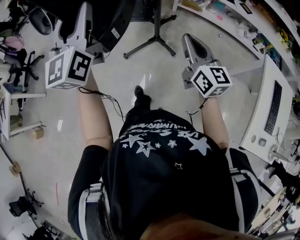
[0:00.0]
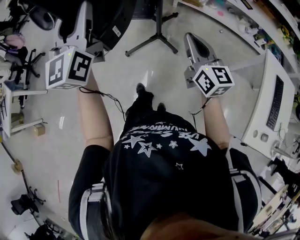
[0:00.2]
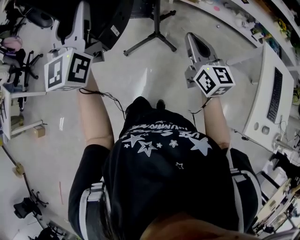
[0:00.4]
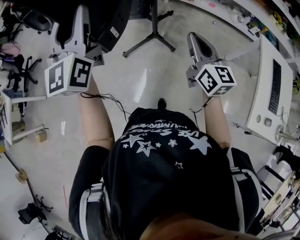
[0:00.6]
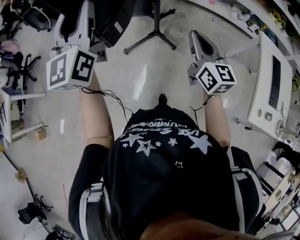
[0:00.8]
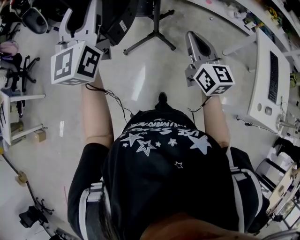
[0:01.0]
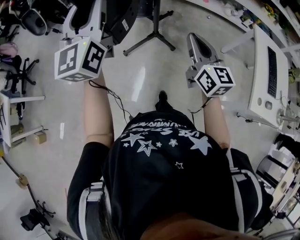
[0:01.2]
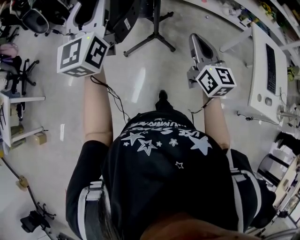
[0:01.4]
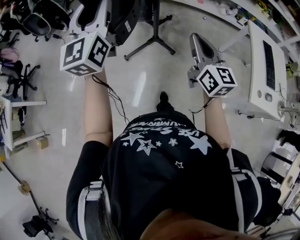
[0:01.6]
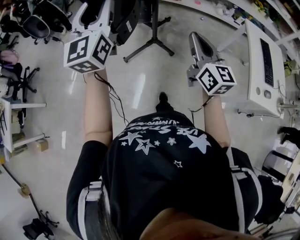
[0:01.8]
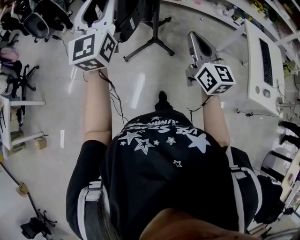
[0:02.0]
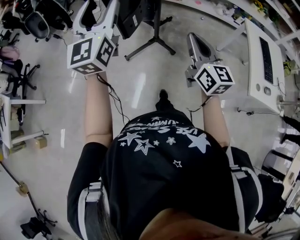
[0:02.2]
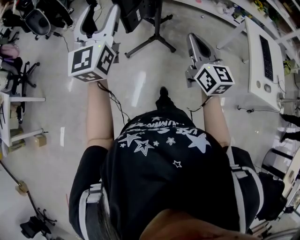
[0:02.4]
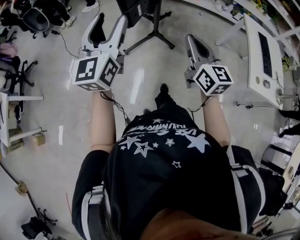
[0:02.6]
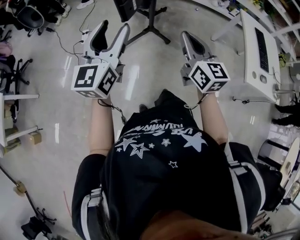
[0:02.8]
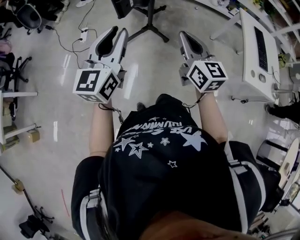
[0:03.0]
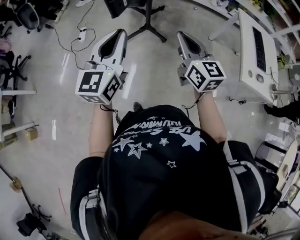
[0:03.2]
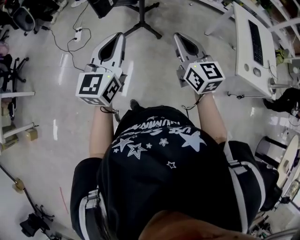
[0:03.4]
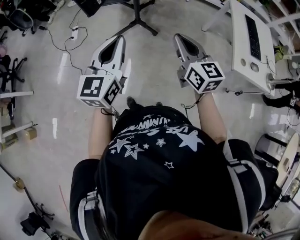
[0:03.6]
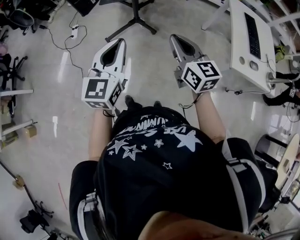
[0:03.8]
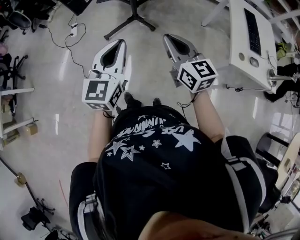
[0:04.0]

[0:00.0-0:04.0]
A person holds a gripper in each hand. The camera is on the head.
0:00.0 to 0:01.4: The grippers both shift backward by approximately 15 cm.
0:01.4 to 0:02.6: The left gripper goes roughly 15 cm backward and downward. The right gripper travels backward by roughly 10 cm.
0:02.6 to 0:04.0: The right gripper travels to the right, backward and downward by roughly 15 cm; the left gripper is displaced to the right, backward and downward by roughly 30 cm, and closes.

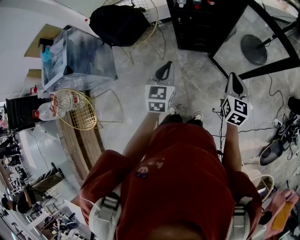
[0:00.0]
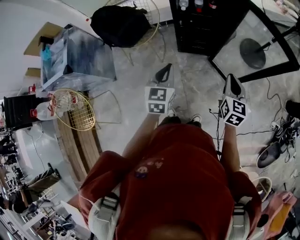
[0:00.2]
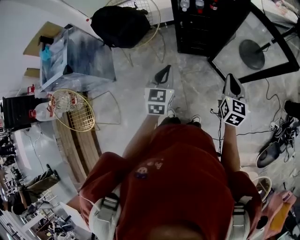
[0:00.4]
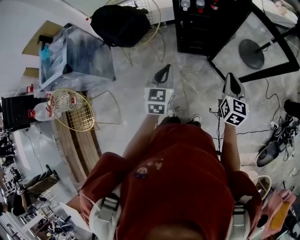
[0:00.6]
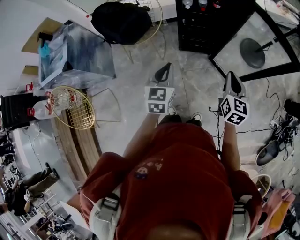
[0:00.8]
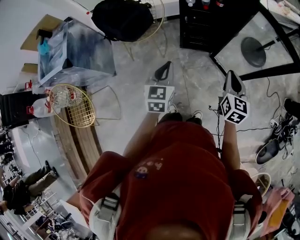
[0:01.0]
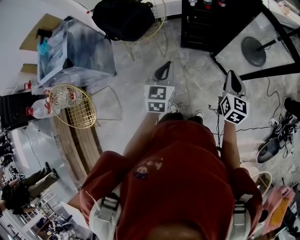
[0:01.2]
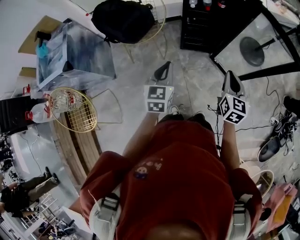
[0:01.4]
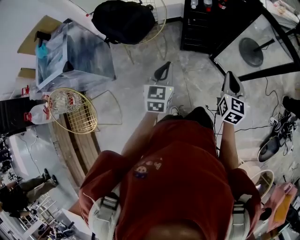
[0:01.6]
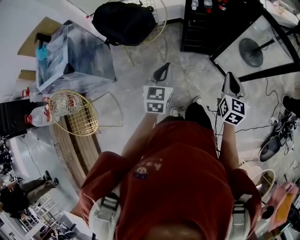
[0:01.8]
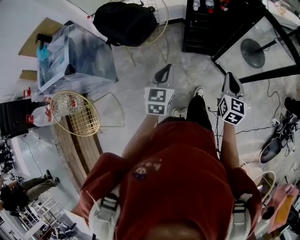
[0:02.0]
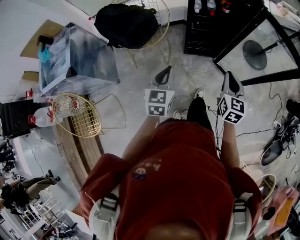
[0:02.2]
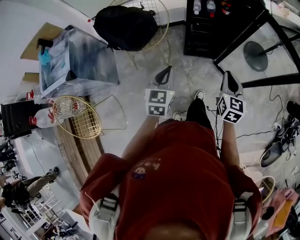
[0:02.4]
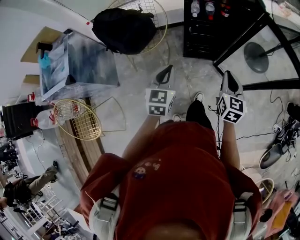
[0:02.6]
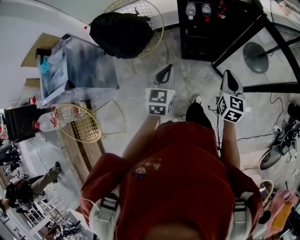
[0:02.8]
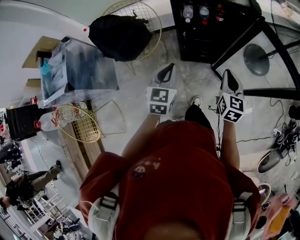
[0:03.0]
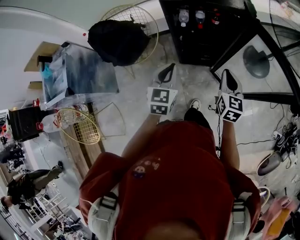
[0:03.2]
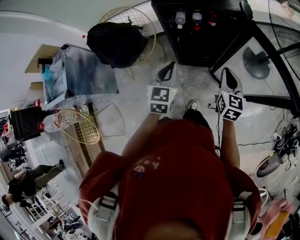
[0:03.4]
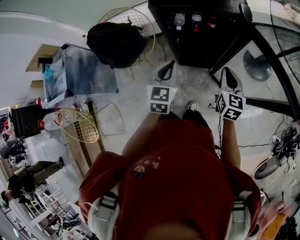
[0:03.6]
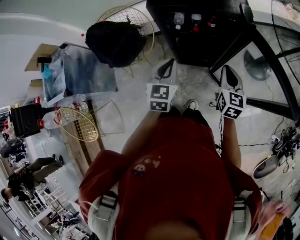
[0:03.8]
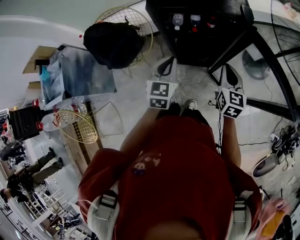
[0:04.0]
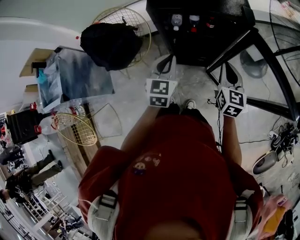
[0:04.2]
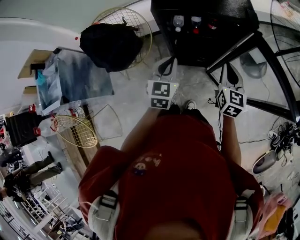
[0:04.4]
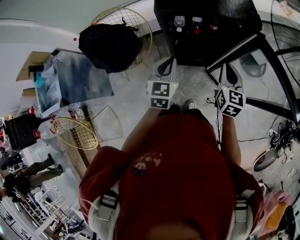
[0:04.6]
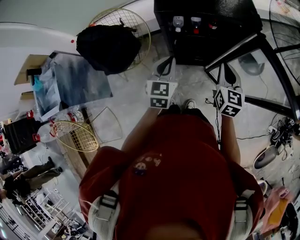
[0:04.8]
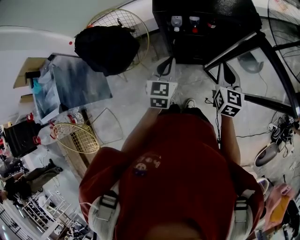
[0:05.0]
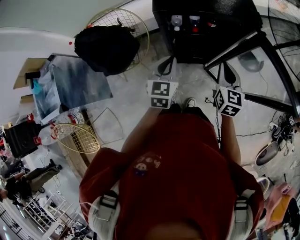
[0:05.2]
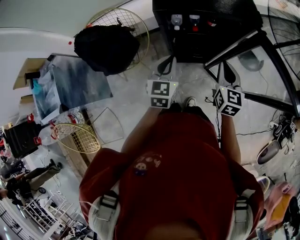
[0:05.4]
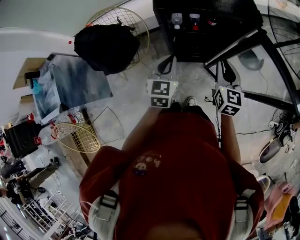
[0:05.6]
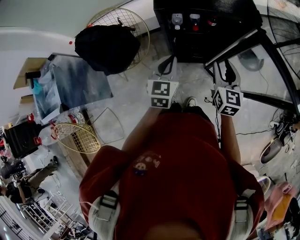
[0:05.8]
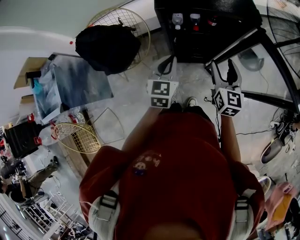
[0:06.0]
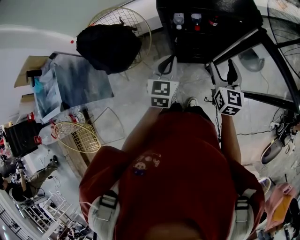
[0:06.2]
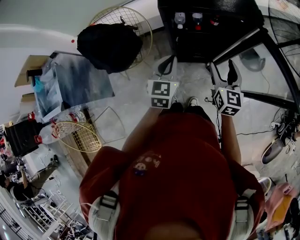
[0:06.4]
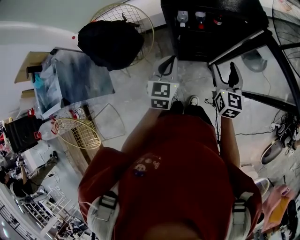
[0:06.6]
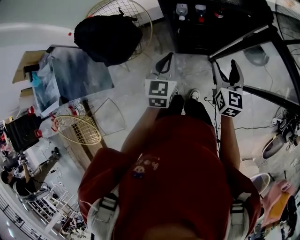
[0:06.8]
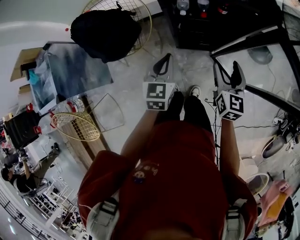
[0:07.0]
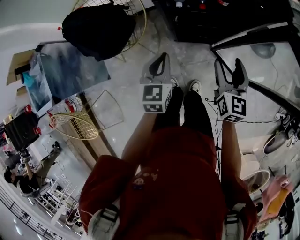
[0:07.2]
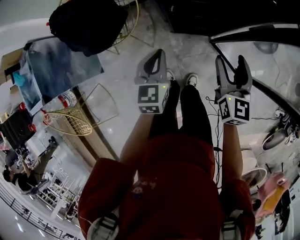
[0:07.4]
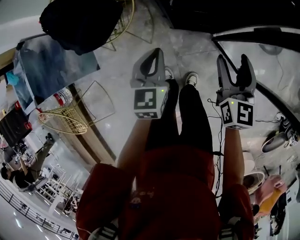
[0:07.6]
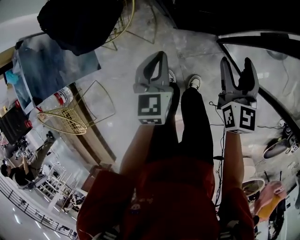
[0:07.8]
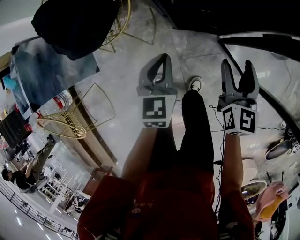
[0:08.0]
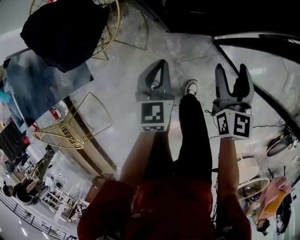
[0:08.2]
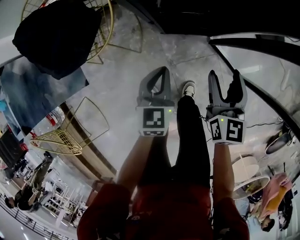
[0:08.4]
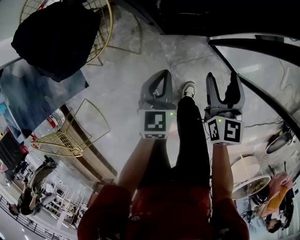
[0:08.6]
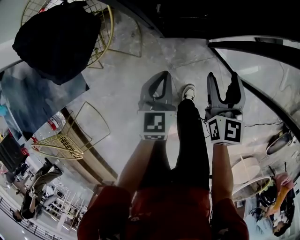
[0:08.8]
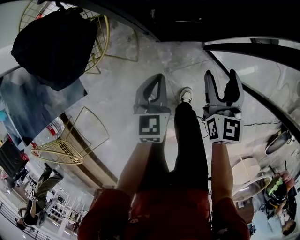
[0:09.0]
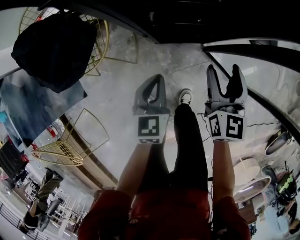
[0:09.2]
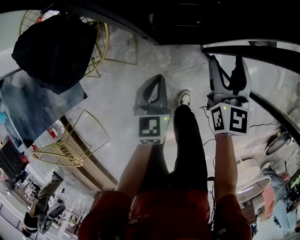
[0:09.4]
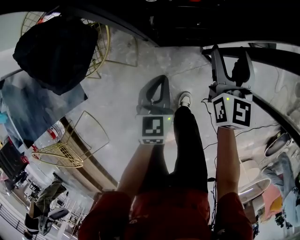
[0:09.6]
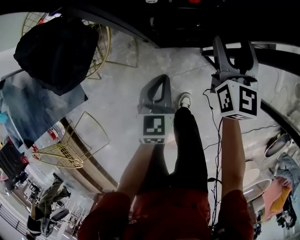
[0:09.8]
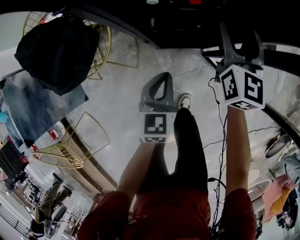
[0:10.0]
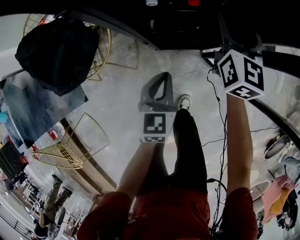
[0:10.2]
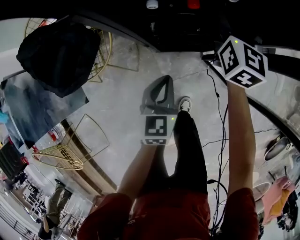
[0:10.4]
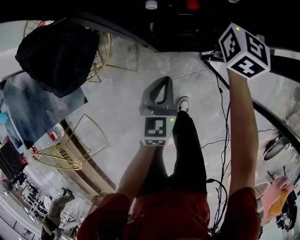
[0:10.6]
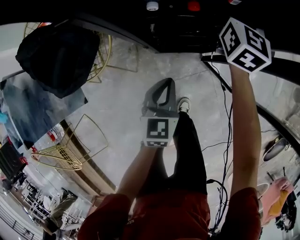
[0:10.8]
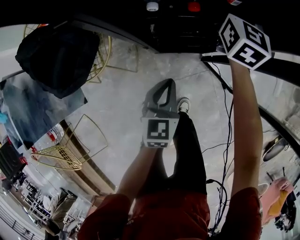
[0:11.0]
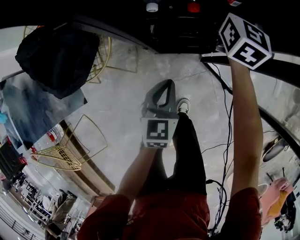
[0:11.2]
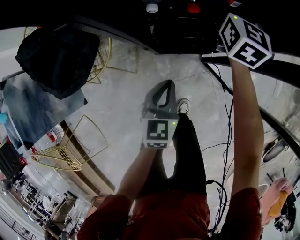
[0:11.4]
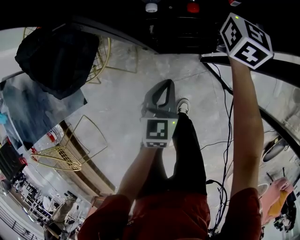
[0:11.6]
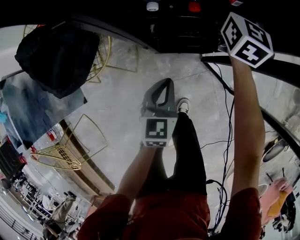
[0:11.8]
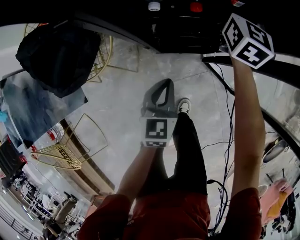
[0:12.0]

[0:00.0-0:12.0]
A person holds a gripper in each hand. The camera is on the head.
0:00.0 to 0:01.6: The grippers both shift to the left by approximately 15 cm.
0:01.6 to 0:03.0: The left gripper shifts some 20 cm forward and to the right; the right gripper goes approximately 20 cm forward.
0:03.0 to 0:04.4: The left gripper heads forward and to the right, covering roughly 15 cm. The right gripper heads forward, covering approximately 15 cm.
0:04.4 to 0:06.0: The right gripper shifts by approximately 5 cm, and opens up.
0:06.0 to 0:07.6: Both grippers travel together downward, approximately 20 cm.
0:07.6 to 0:09.0: The two grippers go about 15 cm downward.
0:09.0 to 0:10.4: The right gripper heads forward and upward, covering about 25 cm. Meanwhile the left gripper changes place by about 5 cm.
0:10.4 to 0:12.0: The right gripper travels forward by approximately 5 cm.

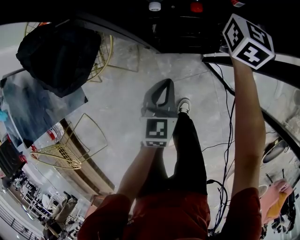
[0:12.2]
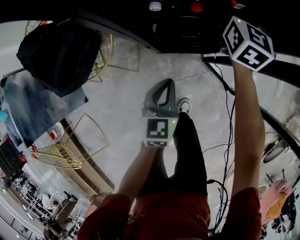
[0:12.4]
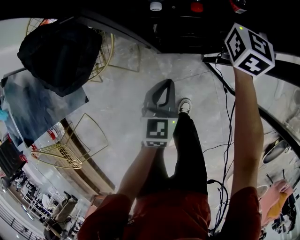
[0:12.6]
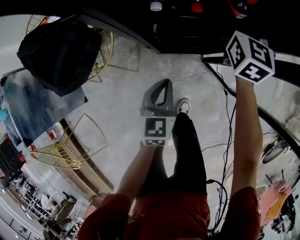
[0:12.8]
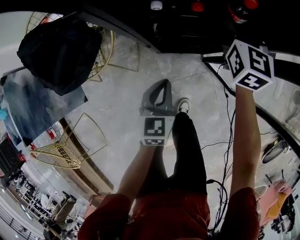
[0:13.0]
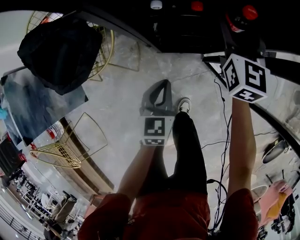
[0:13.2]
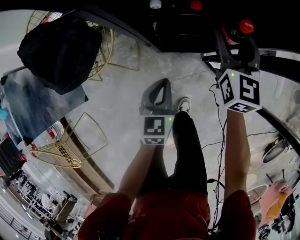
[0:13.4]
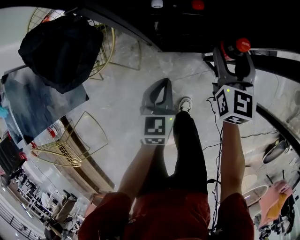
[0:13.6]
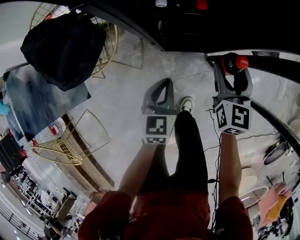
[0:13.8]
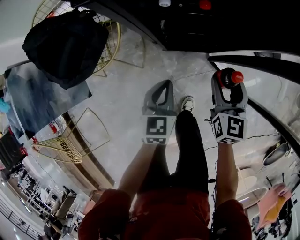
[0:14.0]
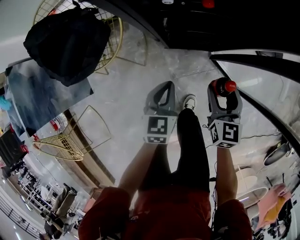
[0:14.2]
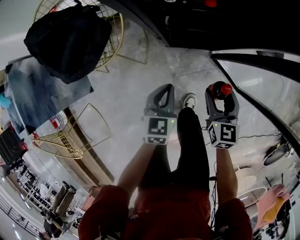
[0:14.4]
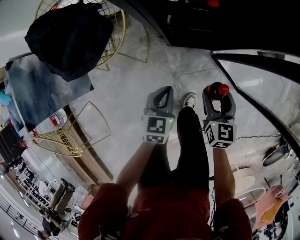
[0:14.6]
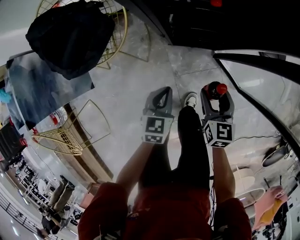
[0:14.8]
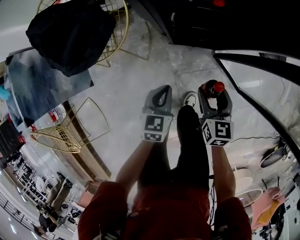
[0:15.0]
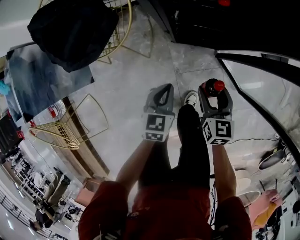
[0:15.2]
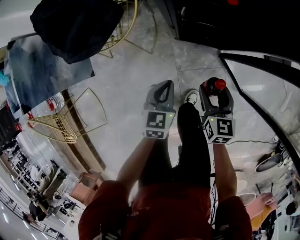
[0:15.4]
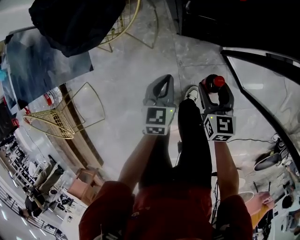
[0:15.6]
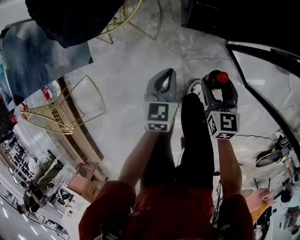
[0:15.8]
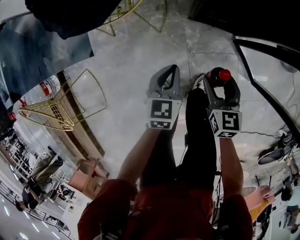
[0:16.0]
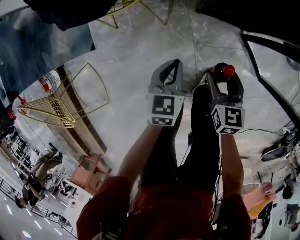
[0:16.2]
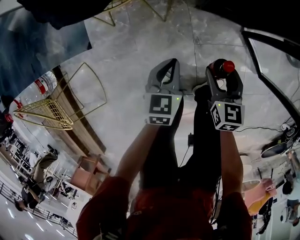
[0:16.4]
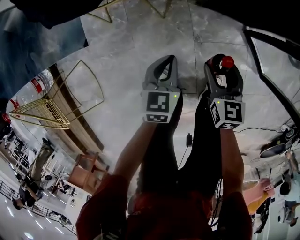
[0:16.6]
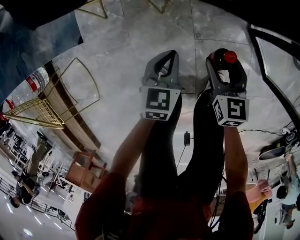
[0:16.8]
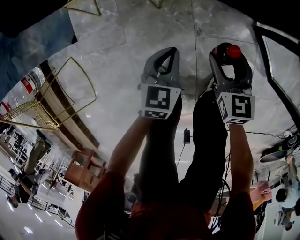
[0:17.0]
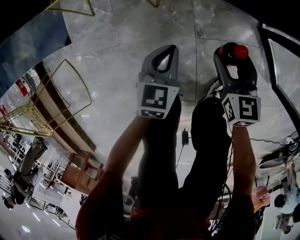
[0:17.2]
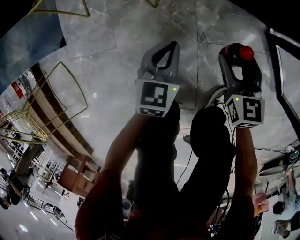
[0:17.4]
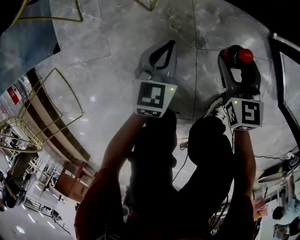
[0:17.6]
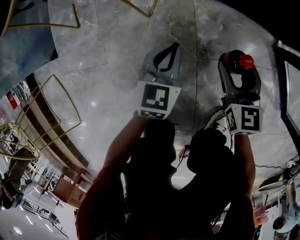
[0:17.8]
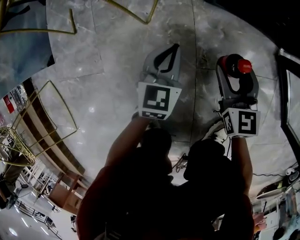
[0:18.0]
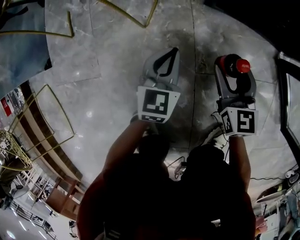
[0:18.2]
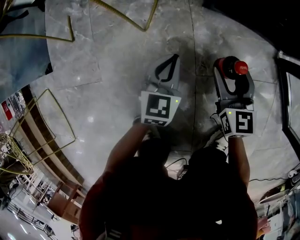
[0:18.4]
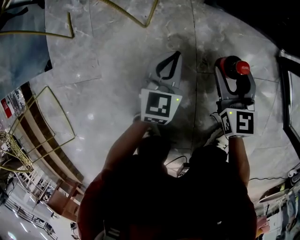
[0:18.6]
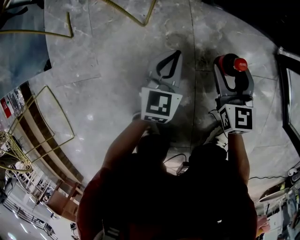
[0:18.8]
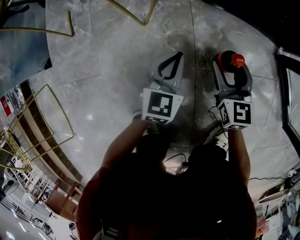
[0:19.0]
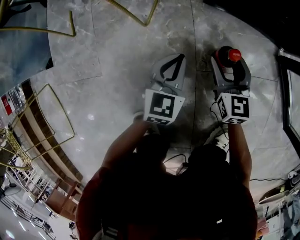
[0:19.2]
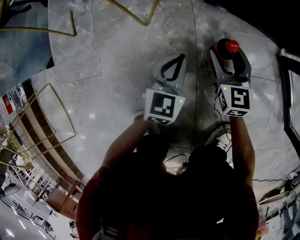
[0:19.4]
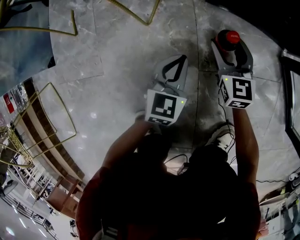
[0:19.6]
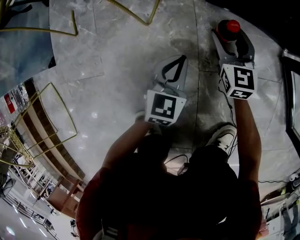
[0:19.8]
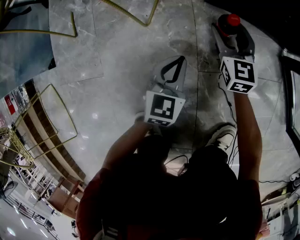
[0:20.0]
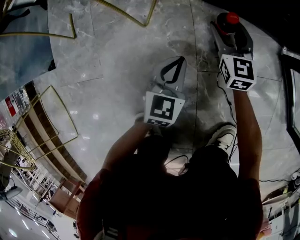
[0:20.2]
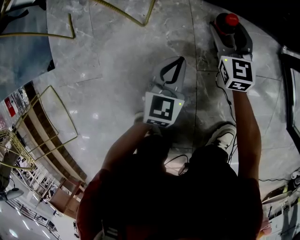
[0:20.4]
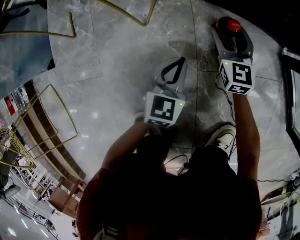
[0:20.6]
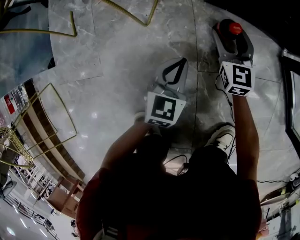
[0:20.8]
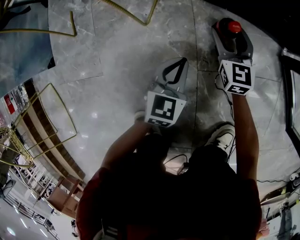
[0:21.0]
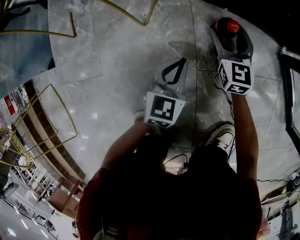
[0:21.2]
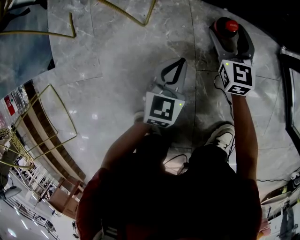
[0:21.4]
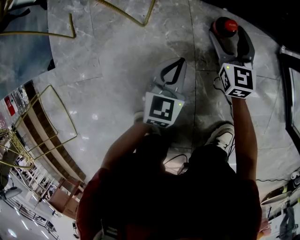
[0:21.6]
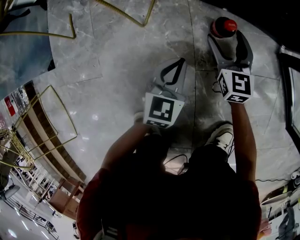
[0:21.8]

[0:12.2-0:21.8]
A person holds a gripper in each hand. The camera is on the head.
0:12.2 to 0:13.8: The right gripper goes about 20 cm backward.
0:13.8 to 0:15.4: The right gripper goes approximately 20 cm backward, downward and to the left, and swivels approximately 20 degrees. Meanwhile the left gripper travels backward by roughly 5 cm.
0:15.4 to 0:17.0: The two grippers go some 25 cm downward and to the left.
0:17.0 to 0:18.6: Both grippers travel together downward, roughly 30 cm.
0:18.6 to 0:20.2: The right gripper is displaced forward by some 10 cm.
0:20.2 to 0:21.8: The grippers make only small movements.
